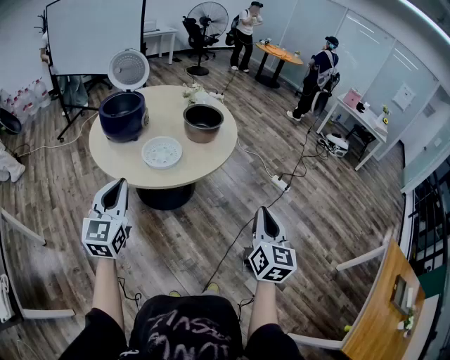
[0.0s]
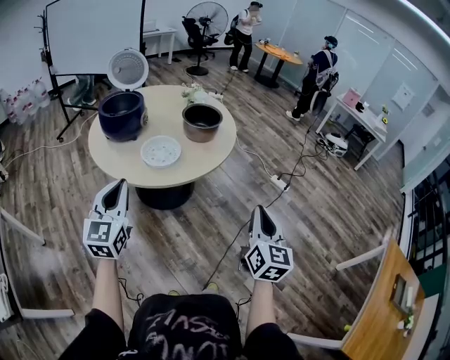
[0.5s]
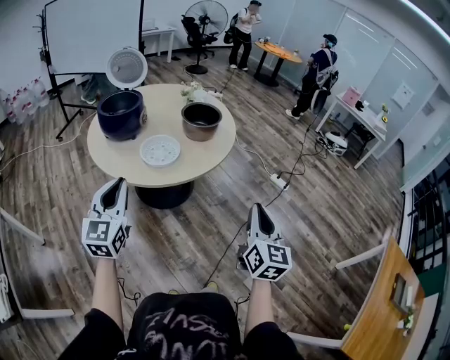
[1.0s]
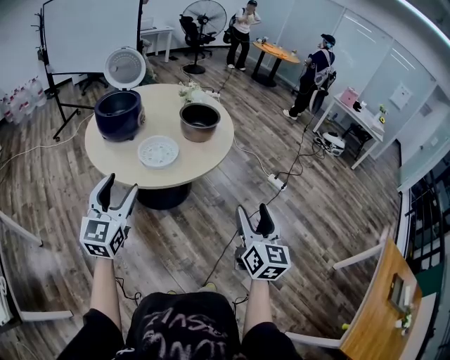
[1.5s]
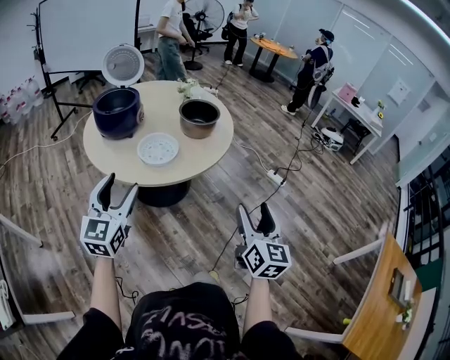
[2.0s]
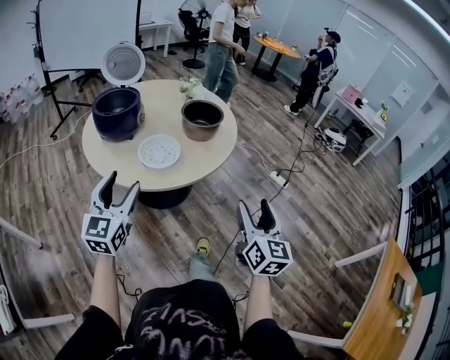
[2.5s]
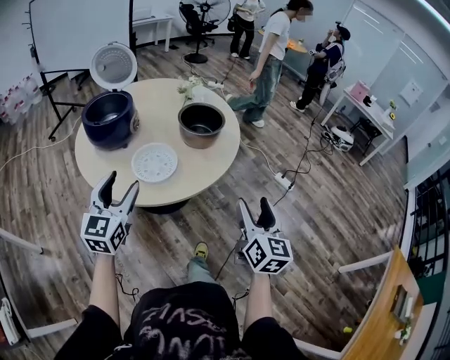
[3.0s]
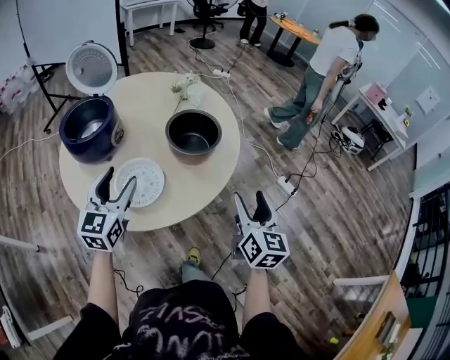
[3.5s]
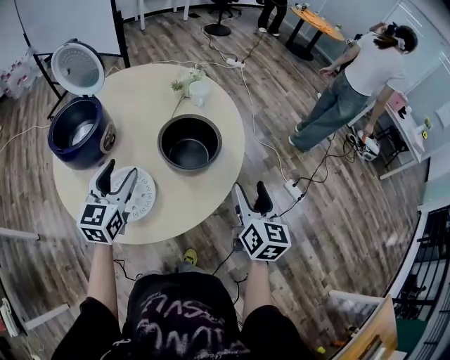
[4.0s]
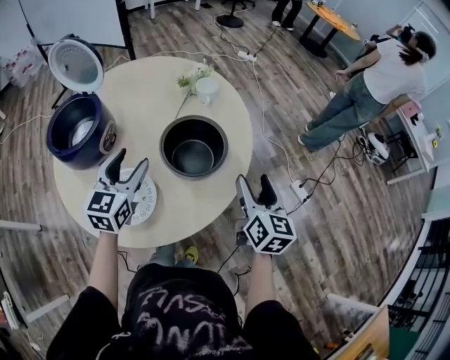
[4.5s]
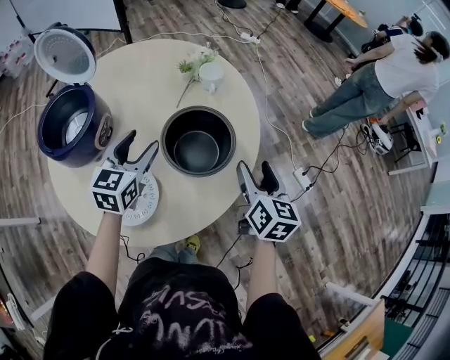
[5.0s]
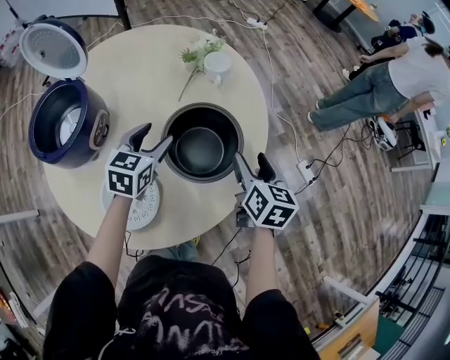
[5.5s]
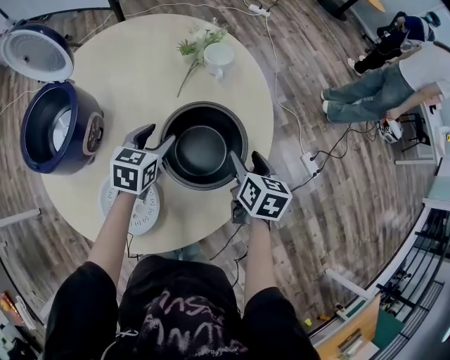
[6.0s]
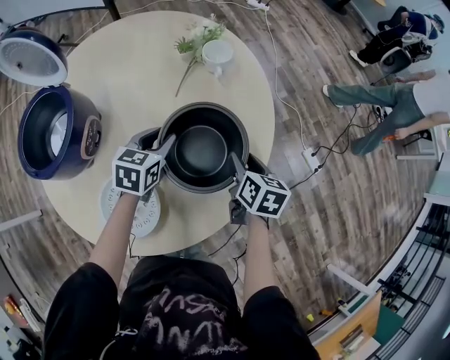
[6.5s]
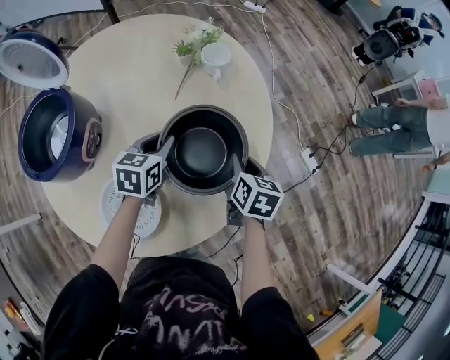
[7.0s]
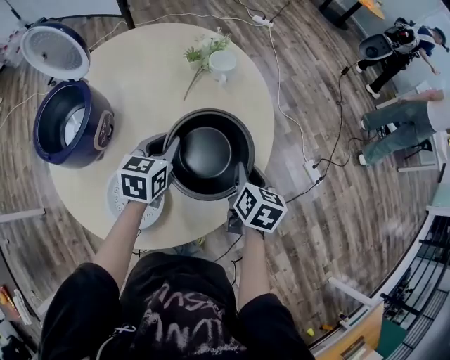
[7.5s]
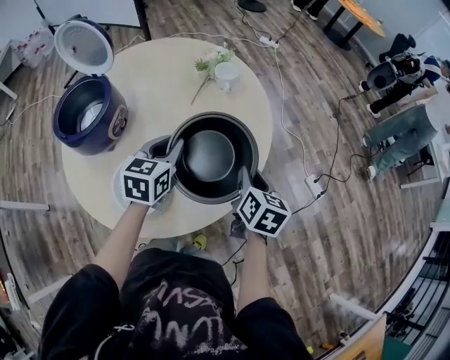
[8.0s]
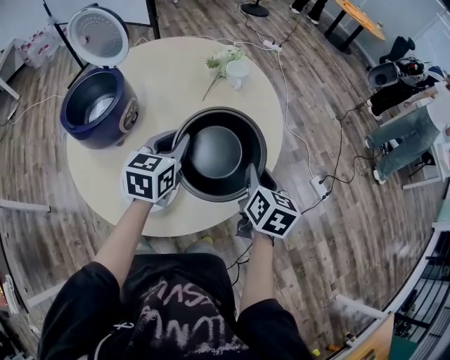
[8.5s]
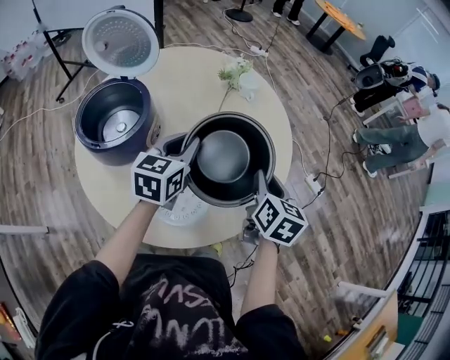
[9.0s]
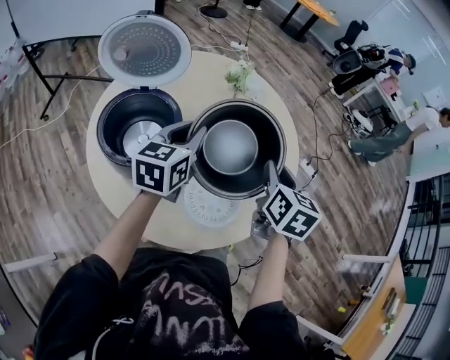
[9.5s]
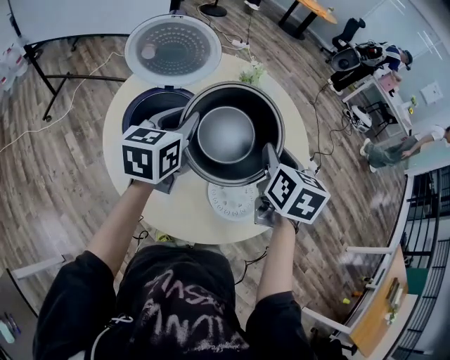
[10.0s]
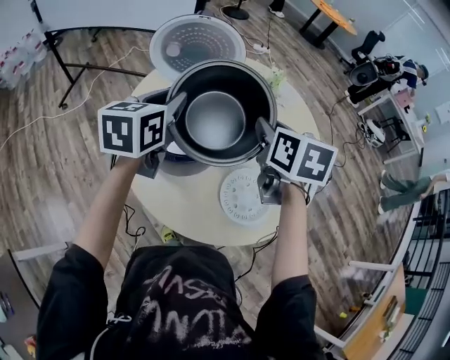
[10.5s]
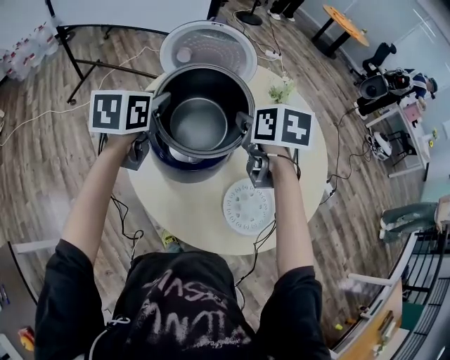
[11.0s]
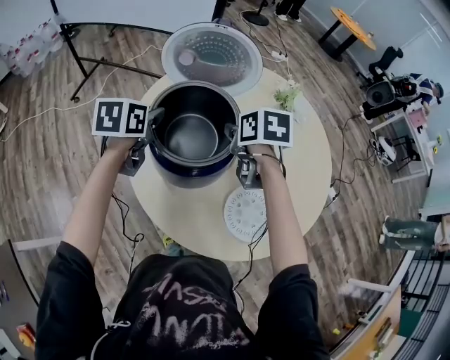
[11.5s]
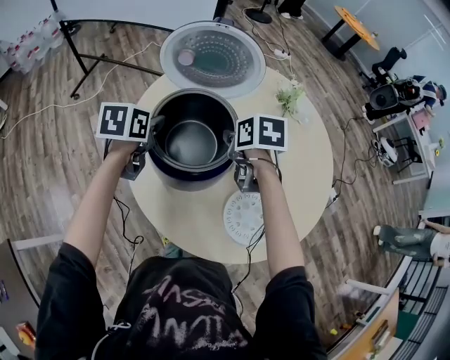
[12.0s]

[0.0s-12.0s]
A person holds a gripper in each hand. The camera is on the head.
0.0s to 2.0s: The right gripper opens its fingers. Meanwhile the left gripper opens its fingers.
2.0s to 4.0s: The pair of grippers is taken forward, approximately 40 cm.
4.0s to 6.0s: The right gripper travels forward, downward and to the left by about 25 cm, and swivels some 30 degrees. The left gripper travels forward and downward by approximately 25 cm, and turns by approximately 30 degrees.
6.0s to 8.0s: The right gripper moves backward and upward, roughly 10 cm, and closes; the left gripper is displaced upward and backward by about 15 cm, and closes its fingers.
8.0s to 10.0s: The left gripper shifts some 30 cm to the left, and turns by approximately 20 degrees. Meanwhile the right gripper heads to the left and upward, covering approximately 35 cm, and rotates about 20 degrees.
10.0s to 12.0s: The left gripper moves to the left and downward, about 20 cm, and turns by some 30 degrees. The right gripper is displaced to the left, forward and downward by roughly 25 cm, and turns by about 40 degrees.

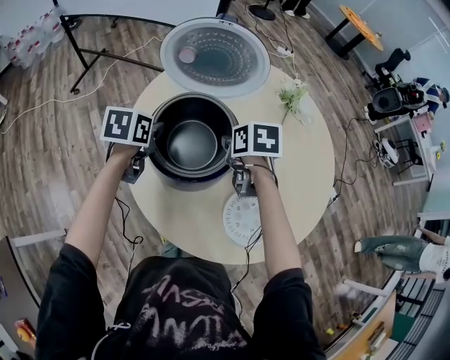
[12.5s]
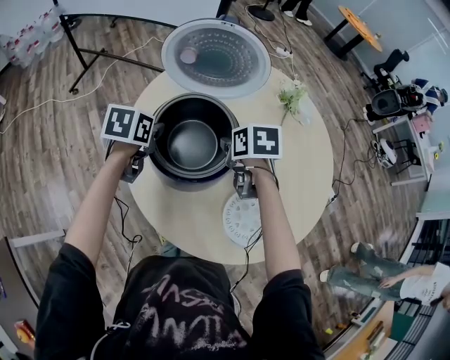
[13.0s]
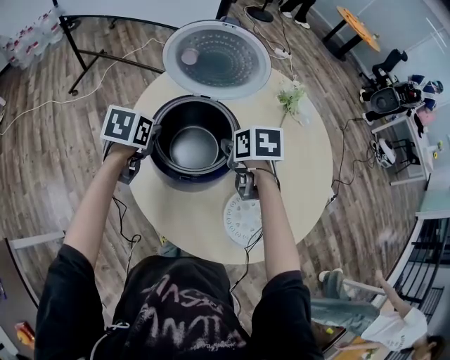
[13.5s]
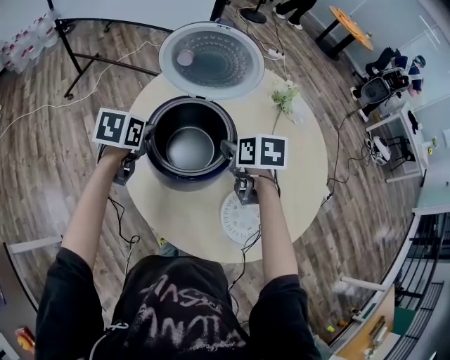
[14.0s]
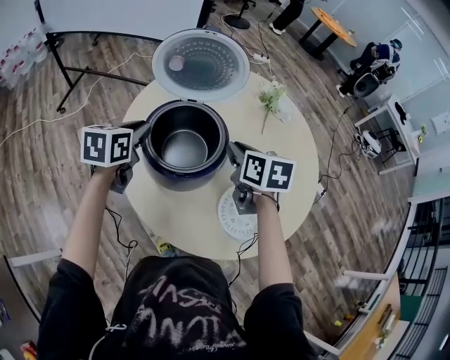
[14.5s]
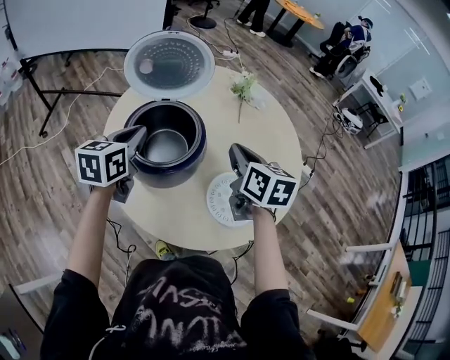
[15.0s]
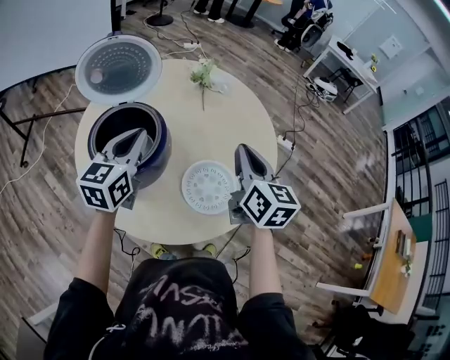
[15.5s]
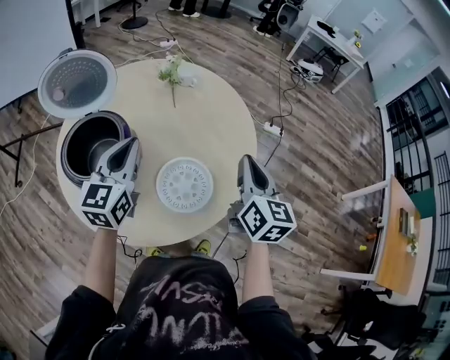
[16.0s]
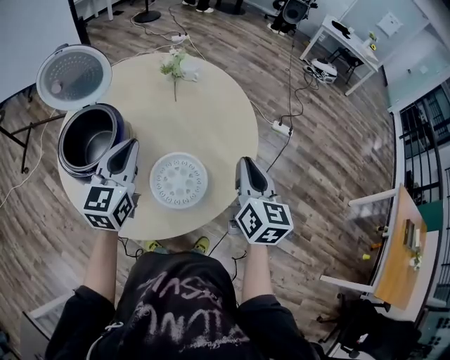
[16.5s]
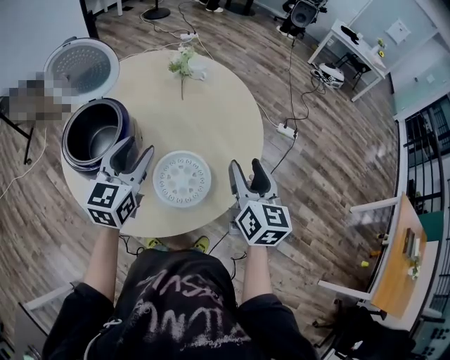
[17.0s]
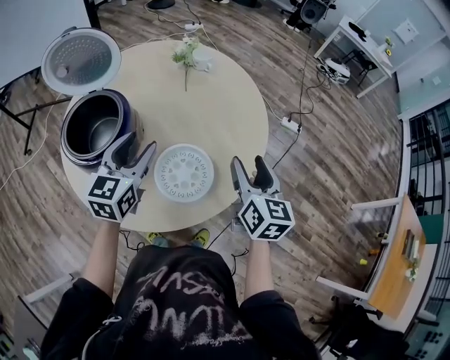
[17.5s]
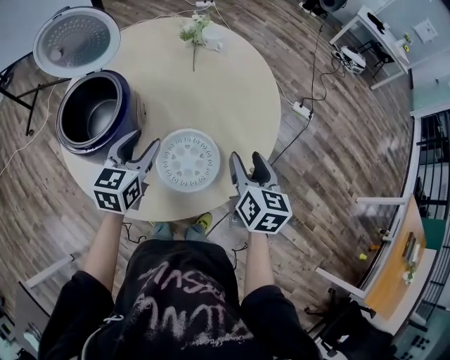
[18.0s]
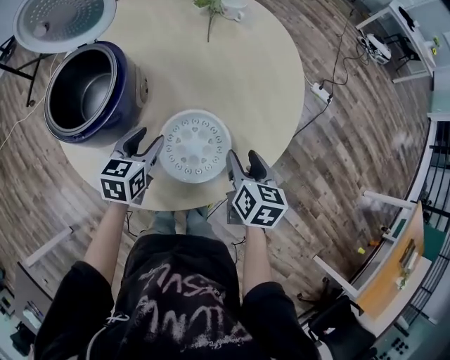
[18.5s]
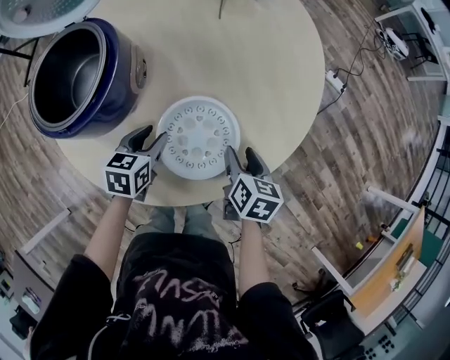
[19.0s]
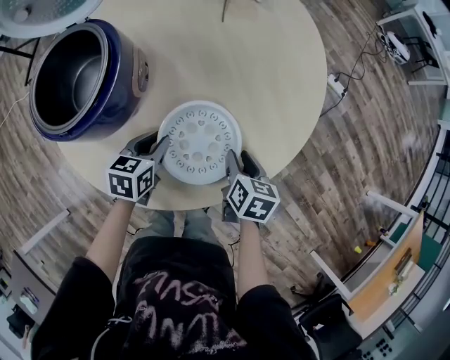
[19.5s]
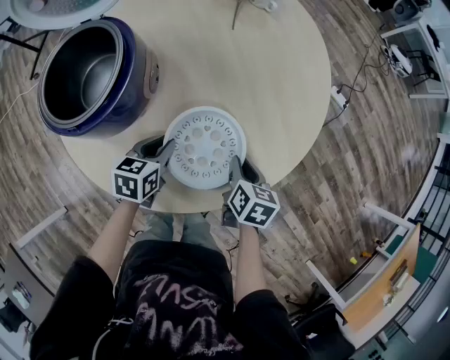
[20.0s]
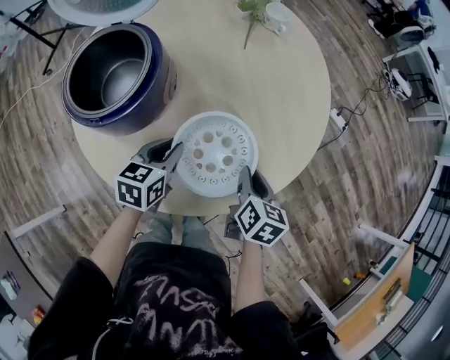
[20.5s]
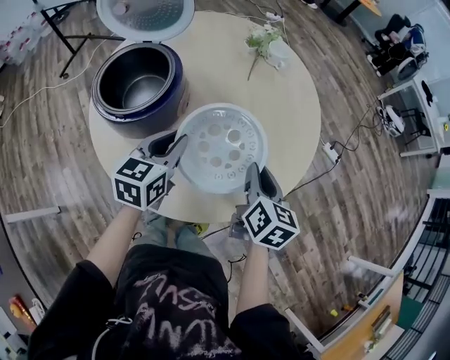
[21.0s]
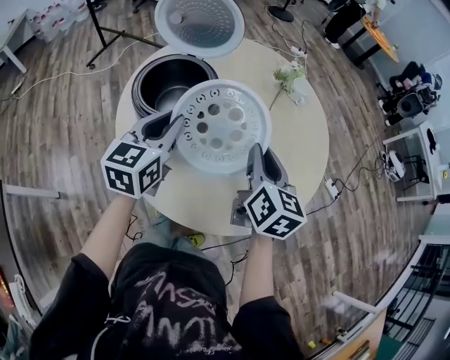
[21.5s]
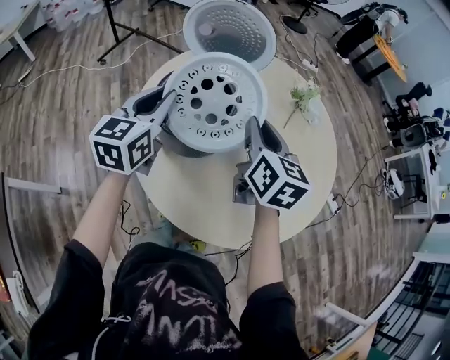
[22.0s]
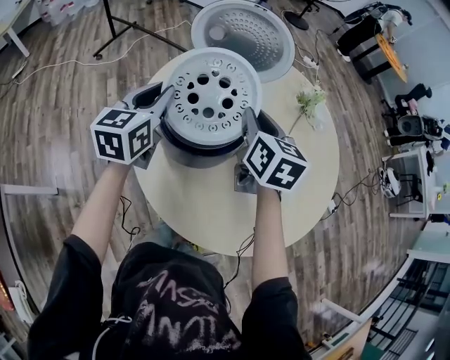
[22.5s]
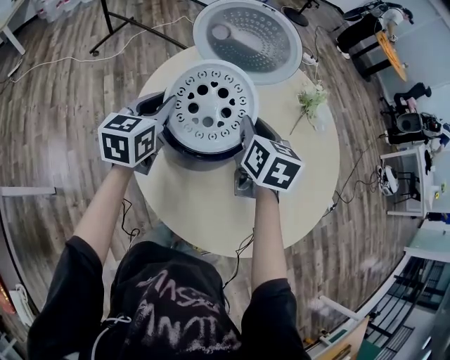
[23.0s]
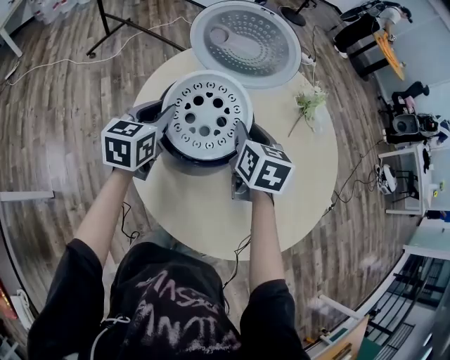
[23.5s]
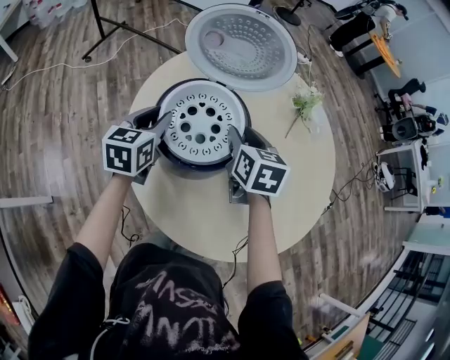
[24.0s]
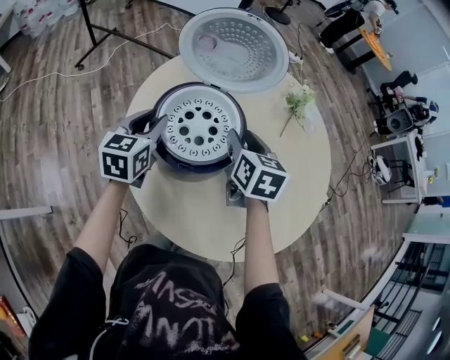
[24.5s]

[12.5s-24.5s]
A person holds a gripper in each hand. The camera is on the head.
12.5s to 14.5s: The two grippers go roughly 5 cm upward. The right gripper changes its angle by some 20 degrees.
14.5s to 16.5s: The right gripper moves approximately 35 cm, and changes its angle by roughly 40 degrees. Meanwhile the left gripper changes place by some 30 cm, and swivels some 30 degrees.
16.5s to 18.5s: The grippers both shift downward by some 20 cm. The left gripper swivels some 30 degrees, and opens its fingers. Meanwhile the right gripper rotates some 30 degrees, and opens.
18.5s to 20.5s: The left gripper goes downward and returns, roughly 10 cm each way, and closes. Meanwhile the right gripper moves some 10 cm downward and comes back, and closes.
20.5s to 22.5s: The right gripper changes place by about 40 cm, and changes its angle by roughly 40 degrees, while the left gripper moves roughly 35 cm, and turns by some 40 degrees.
22.5s to 24.5s: Both grippers move downward, about 5 cm.

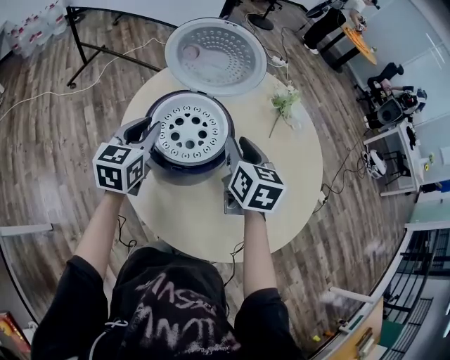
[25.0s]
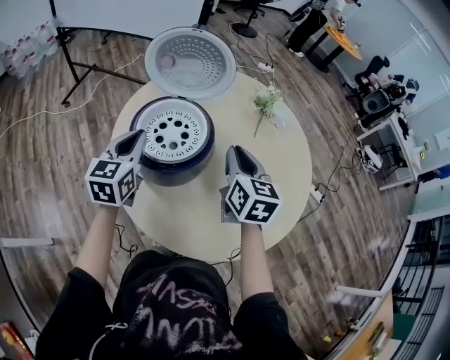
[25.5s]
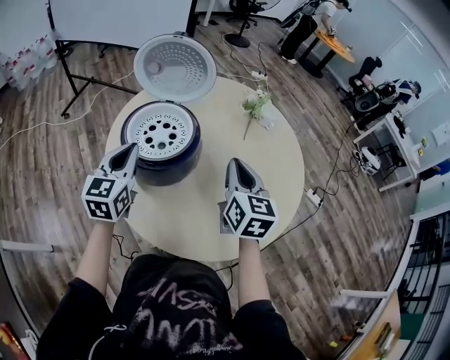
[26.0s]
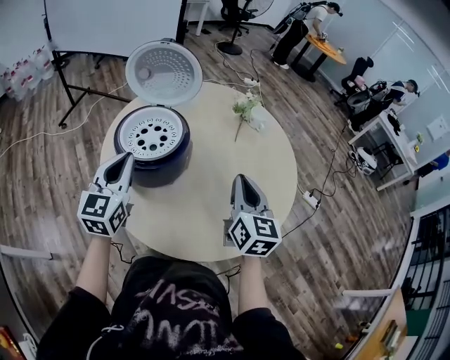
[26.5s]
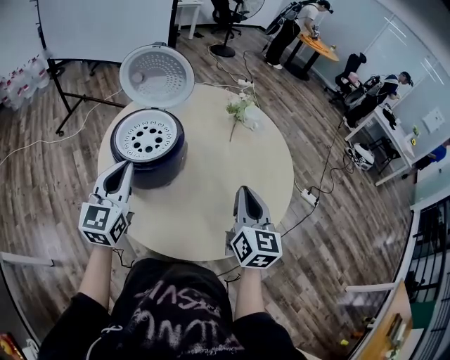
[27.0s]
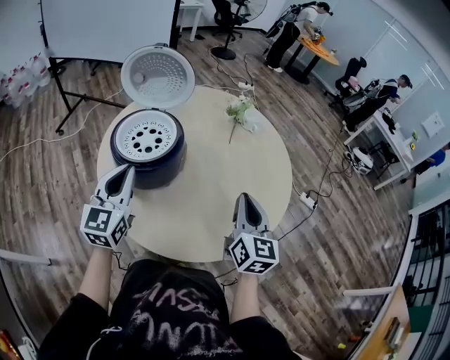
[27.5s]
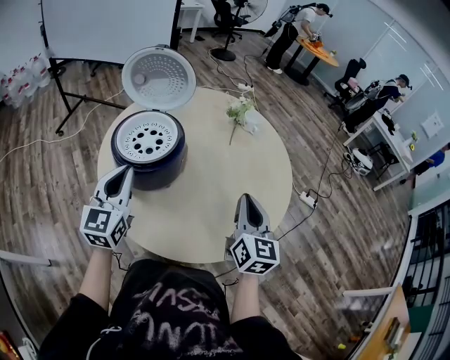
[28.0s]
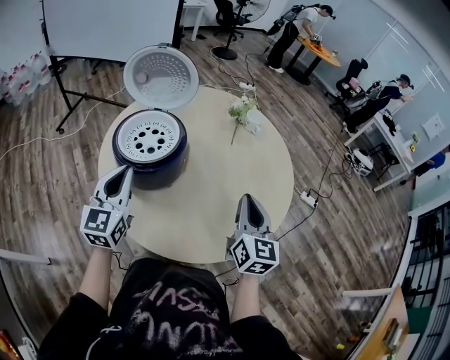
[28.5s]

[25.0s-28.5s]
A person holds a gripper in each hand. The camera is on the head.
25.0s to 27.0s: The left gripper is displaced backward, to the right and upward by approximately 20 cm; the right gripper is displaced to the right and backward by roughly 25 cm, turns by approximately 20 degrees, and closes its fingers.
27.0s to 28.5s: The grippers make only small movements.
